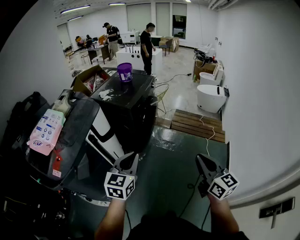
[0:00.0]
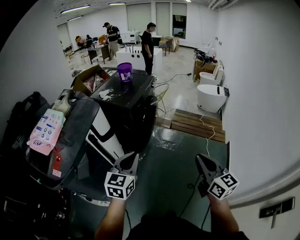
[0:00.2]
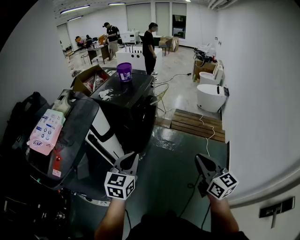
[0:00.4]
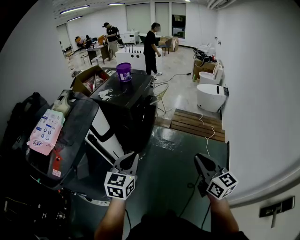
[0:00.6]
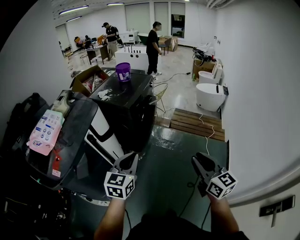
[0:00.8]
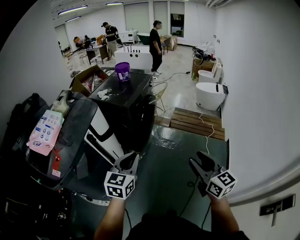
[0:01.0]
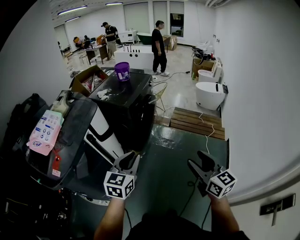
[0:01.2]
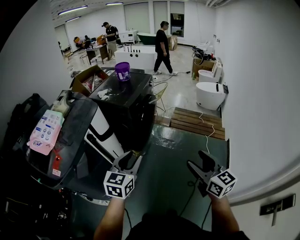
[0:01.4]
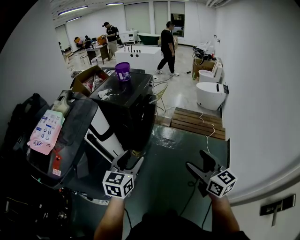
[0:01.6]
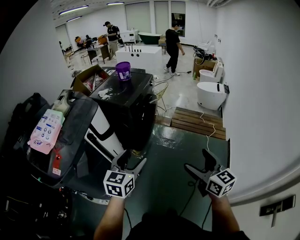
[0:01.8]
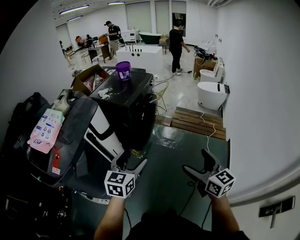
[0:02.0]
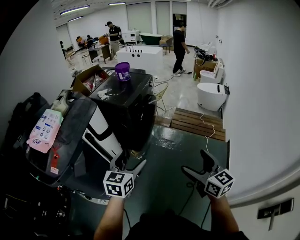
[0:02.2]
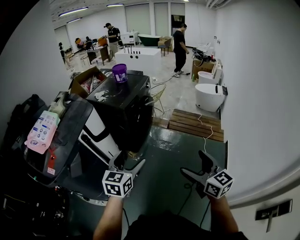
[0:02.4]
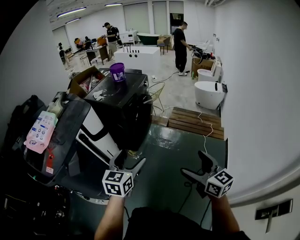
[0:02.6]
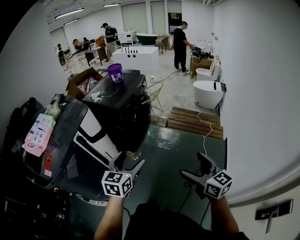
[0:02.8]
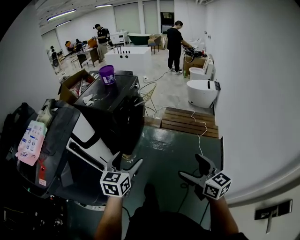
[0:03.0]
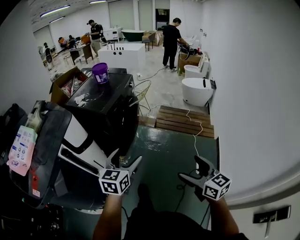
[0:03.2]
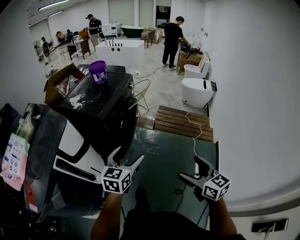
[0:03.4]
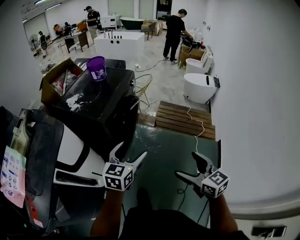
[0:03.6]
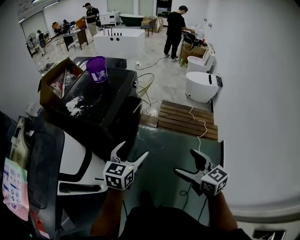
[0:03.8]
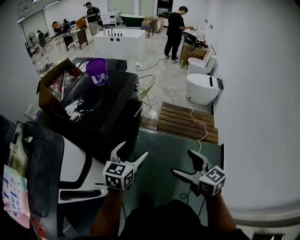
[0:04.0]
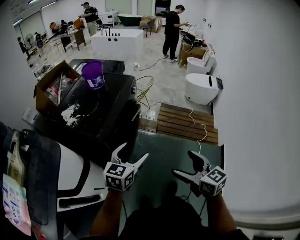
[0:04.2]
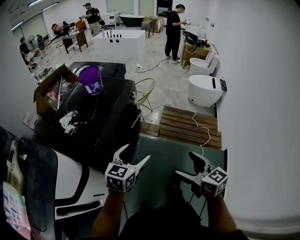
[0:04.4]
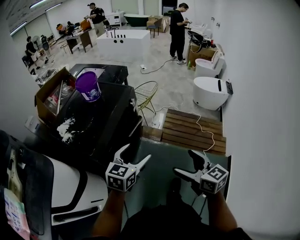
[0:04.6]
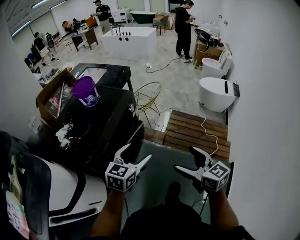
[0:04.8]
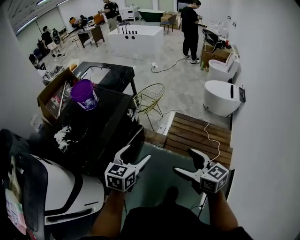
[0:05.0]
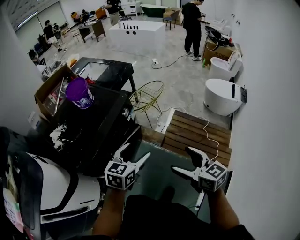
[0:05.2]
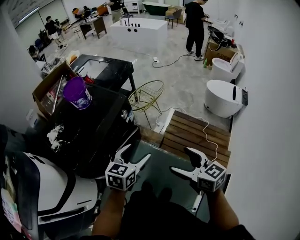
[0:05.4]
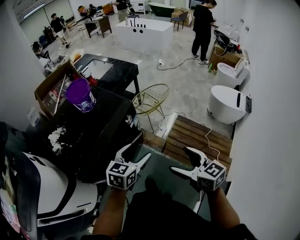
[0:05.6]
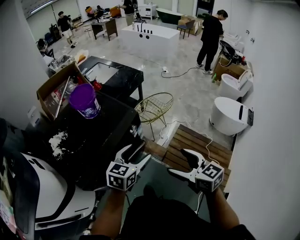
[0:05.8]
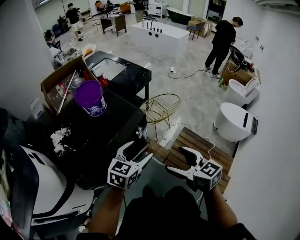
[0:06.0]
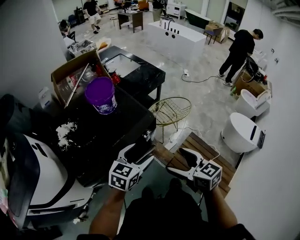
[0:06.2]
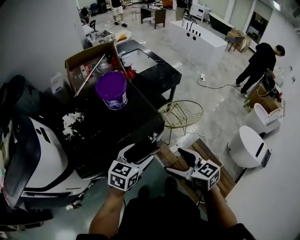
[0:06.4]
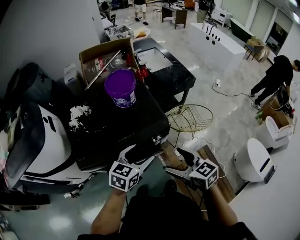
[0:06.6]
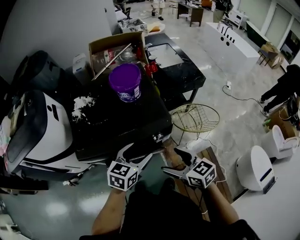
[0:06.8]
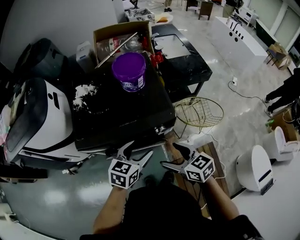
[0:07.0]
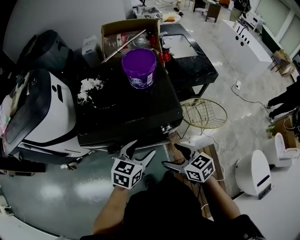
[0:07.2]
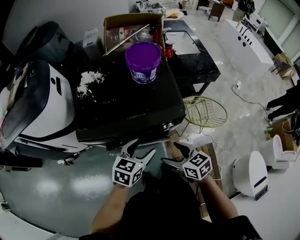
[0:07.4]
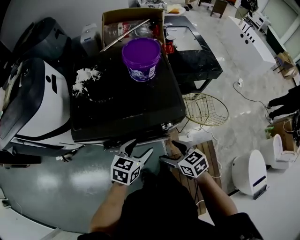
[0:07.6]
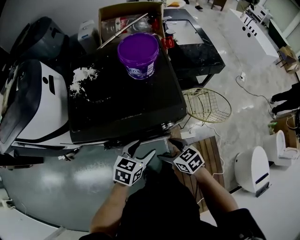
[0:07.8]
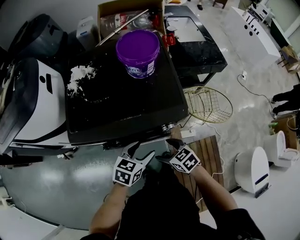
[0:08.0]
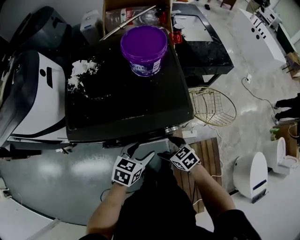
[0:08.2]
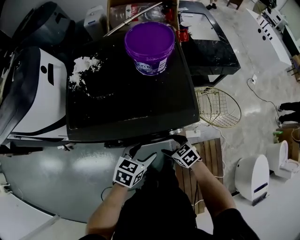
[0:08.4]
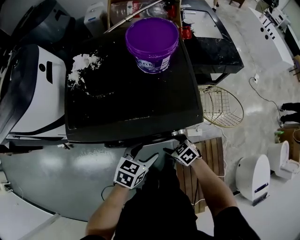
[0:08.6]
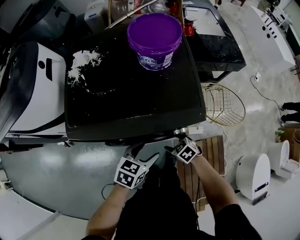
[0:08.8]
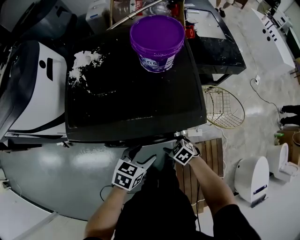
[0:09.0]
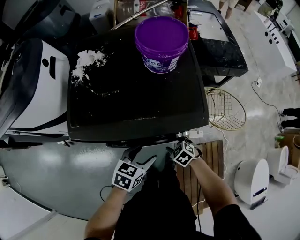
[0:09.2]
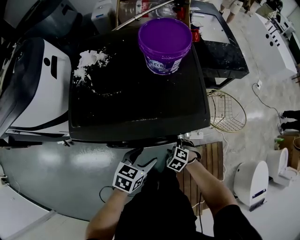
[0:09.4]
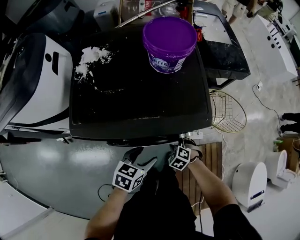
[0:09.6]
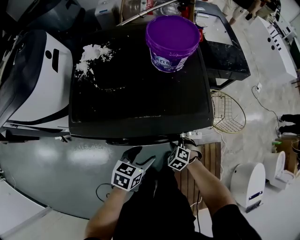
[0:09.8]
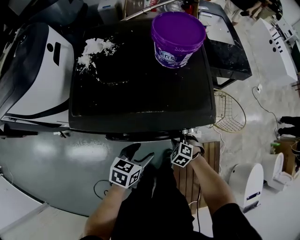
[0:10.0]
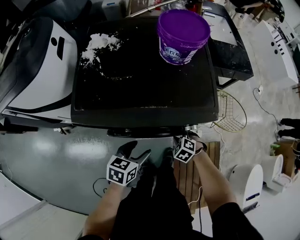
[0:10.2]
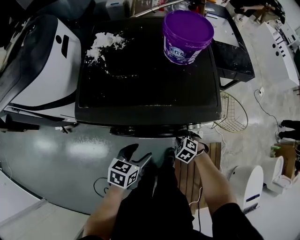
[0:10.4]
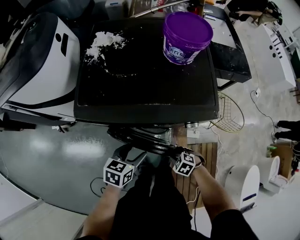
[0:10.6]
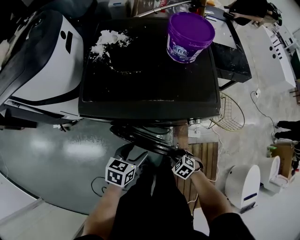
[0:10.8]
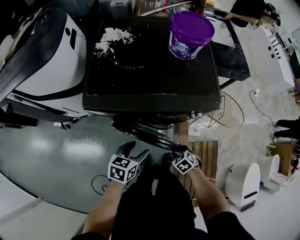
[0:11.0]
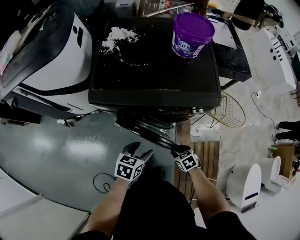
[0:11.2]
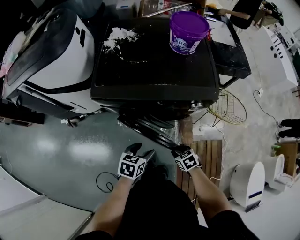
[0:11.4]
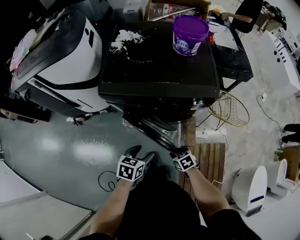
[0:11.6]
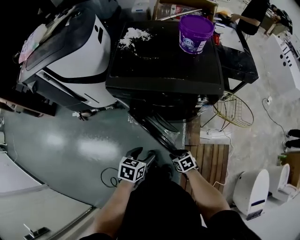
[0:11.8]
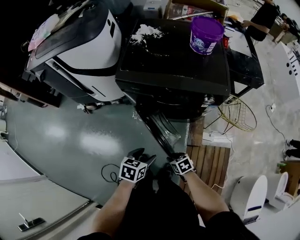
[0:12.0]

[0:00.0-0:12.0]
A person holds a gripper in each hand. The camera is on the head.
0:00.0 to 0:01.6: The right gripper opens. Meanwhile the left gripper opens its fingers.
0:01.6 to 0:03.0: The grippers both shift to the right by about 5 cm. The left gripper opens.
0:03.0 to 0:04.4: Both grippers travel together forward, about 40 cm.
0:04.4 to 0:06.0: Both grippers move forward, about 35 cm. The right gripper changes its angle by approximately 30 degrees.
0:06.0 to 0:07.6: The left gripper travels downward by roughly 10 cm, and turns by some 40 degrees. The right gripper heads downward, covering approximately 20 cm, and rotates roughly 50 degrees.
0:07.6 to 0:09.0: The left gripper travels downward by some 10 cm; the right gripper travels downward by some 20 cm, and changes its angle by roughly 30 degrees.
0:09.0 to 0:10.4: The right gripper swivels some 30 degrees, and closes; the left gripper goes about 5 cm to the left.
0:10.4 to 0:12.0: The right gripper shifts by some 25 cm, and swivels roughly 40 degrees, while the left gripper moves about 20 cm.

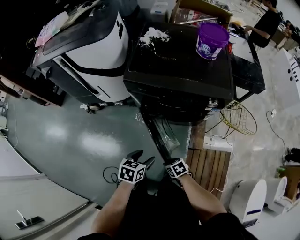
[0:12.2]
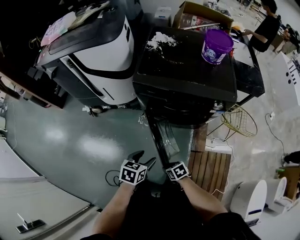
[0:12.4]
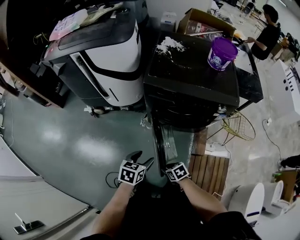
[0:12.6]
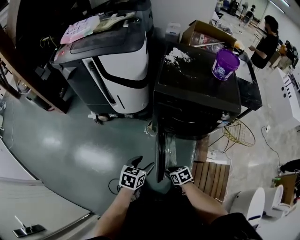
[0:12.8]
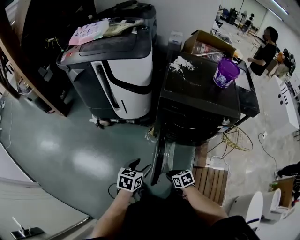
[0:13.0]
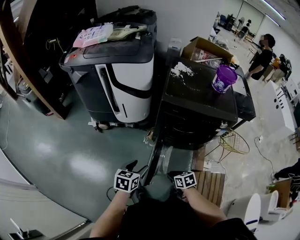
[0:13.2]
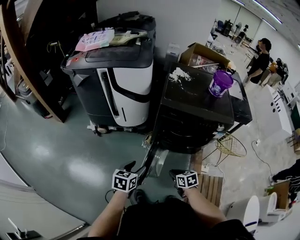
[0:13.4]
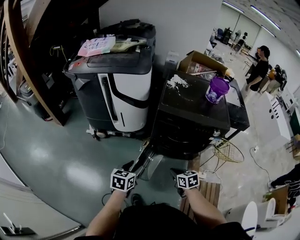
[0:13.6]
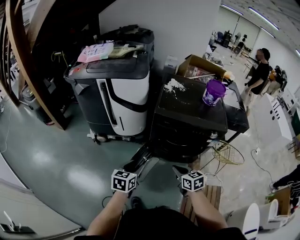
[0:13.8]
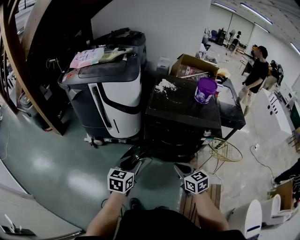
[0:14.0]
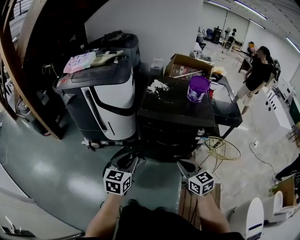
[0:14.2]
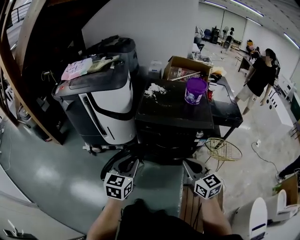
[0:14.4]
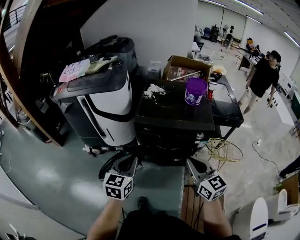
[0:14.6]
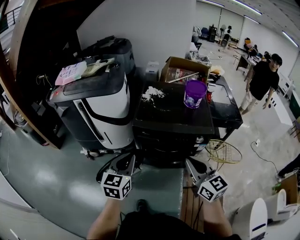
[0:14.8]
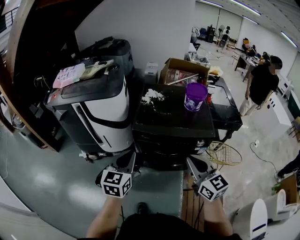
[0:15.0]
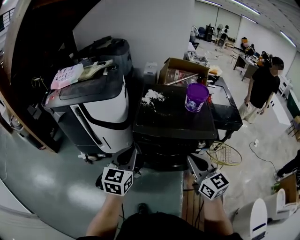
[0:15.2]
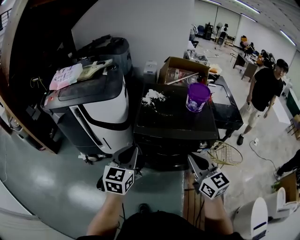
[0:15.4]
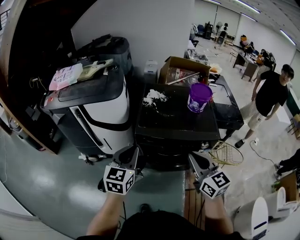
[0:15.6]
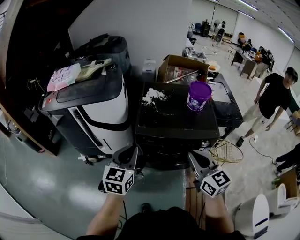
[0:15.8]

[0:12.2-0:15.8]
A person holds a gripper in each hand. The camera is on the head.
0:12.2 to 0:14.0: The left gripper moves upward and to the left, some 25 cm, and rotates some 30 degrees. Meanwhile the right gripper travels upward by about 30 cm, and angles its fingers upward, by roughly 30 degrees.
0:14.0 to 0:15.8: The right gripper moves upward and forward, about 20 cm, and swivels about 30 degrees. Meanwhile the left gripper travels forward and upward by roughly 20 cm, and closes its fingers.

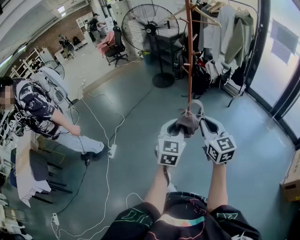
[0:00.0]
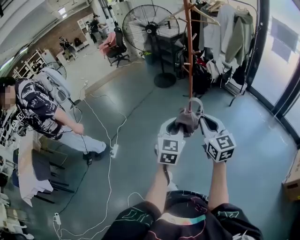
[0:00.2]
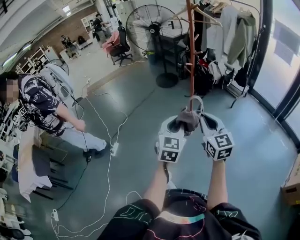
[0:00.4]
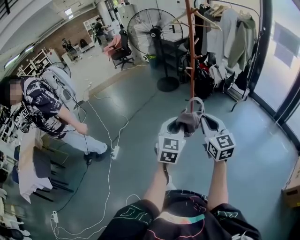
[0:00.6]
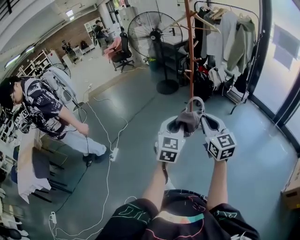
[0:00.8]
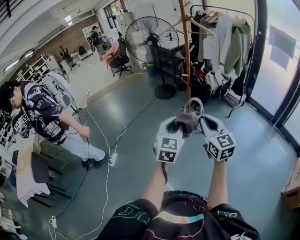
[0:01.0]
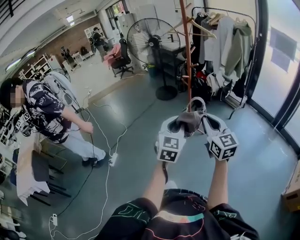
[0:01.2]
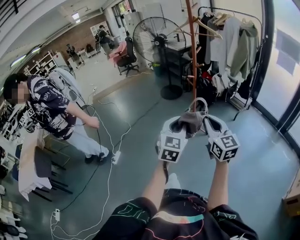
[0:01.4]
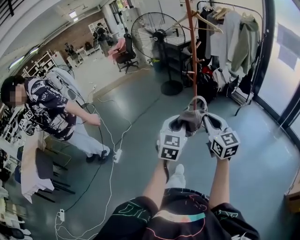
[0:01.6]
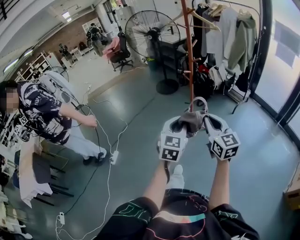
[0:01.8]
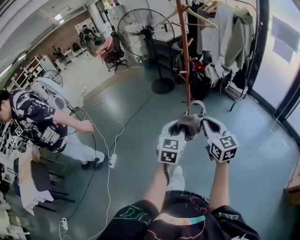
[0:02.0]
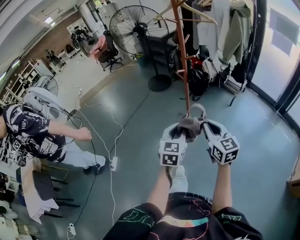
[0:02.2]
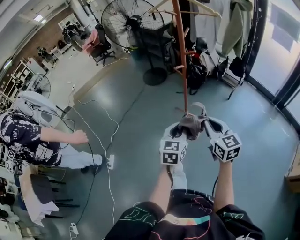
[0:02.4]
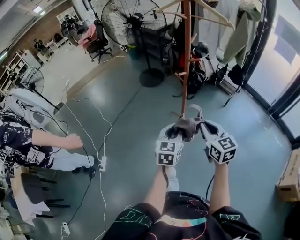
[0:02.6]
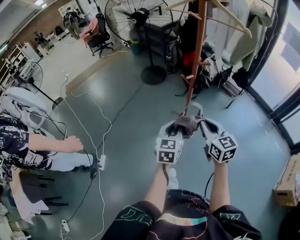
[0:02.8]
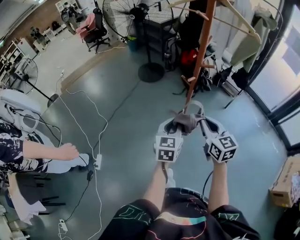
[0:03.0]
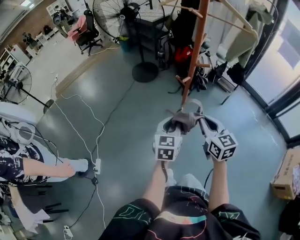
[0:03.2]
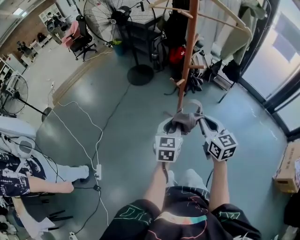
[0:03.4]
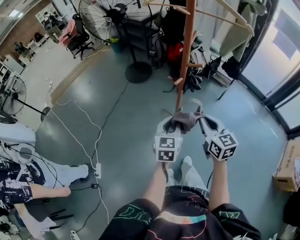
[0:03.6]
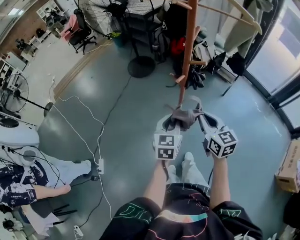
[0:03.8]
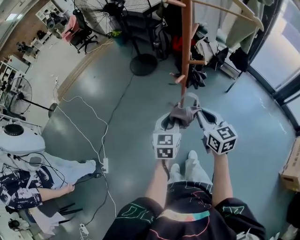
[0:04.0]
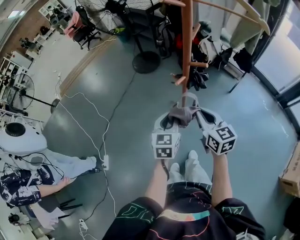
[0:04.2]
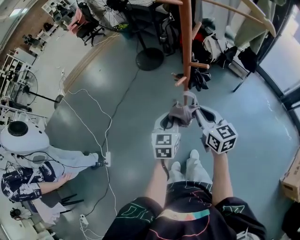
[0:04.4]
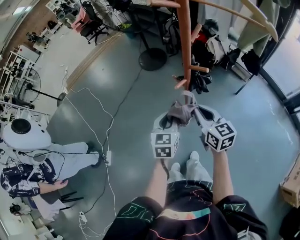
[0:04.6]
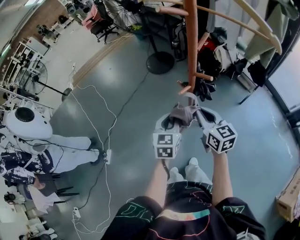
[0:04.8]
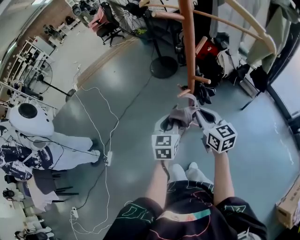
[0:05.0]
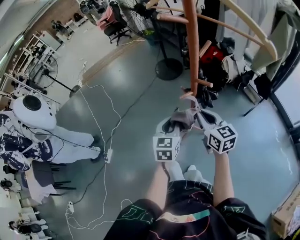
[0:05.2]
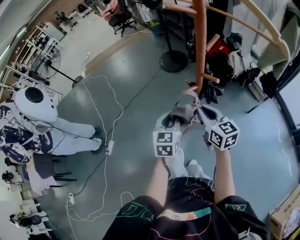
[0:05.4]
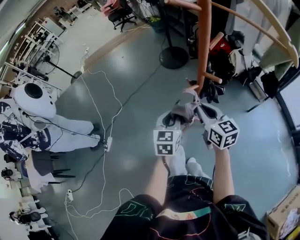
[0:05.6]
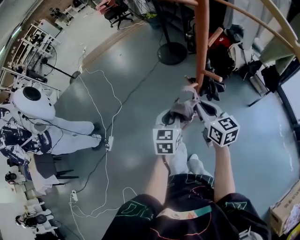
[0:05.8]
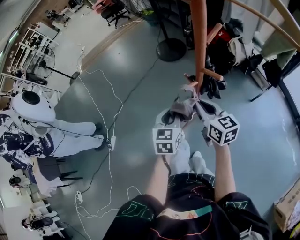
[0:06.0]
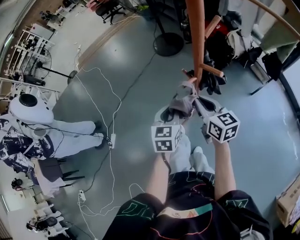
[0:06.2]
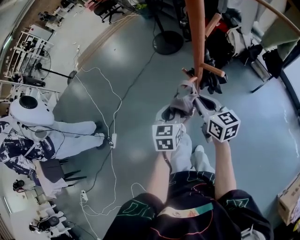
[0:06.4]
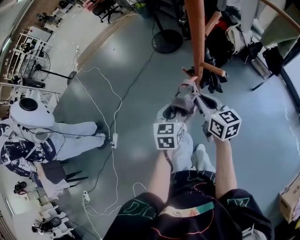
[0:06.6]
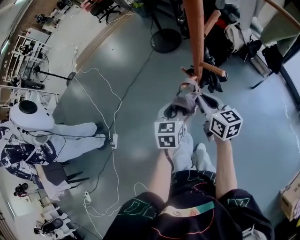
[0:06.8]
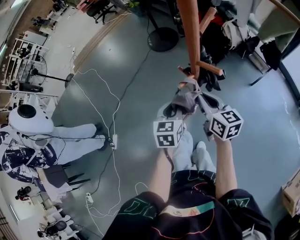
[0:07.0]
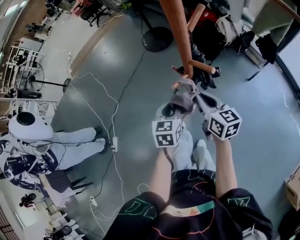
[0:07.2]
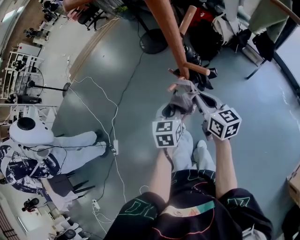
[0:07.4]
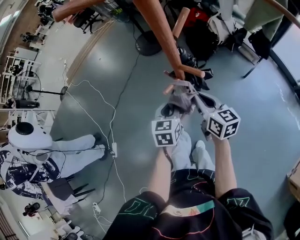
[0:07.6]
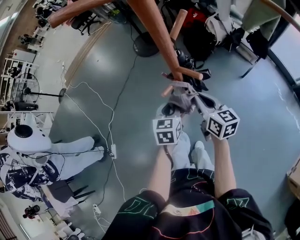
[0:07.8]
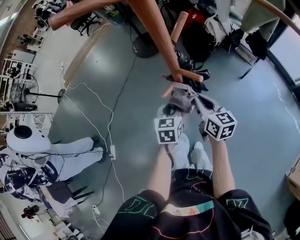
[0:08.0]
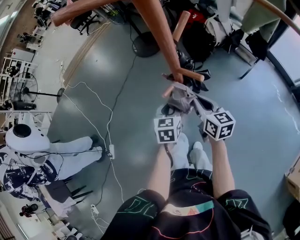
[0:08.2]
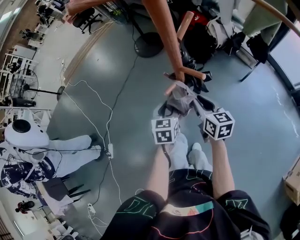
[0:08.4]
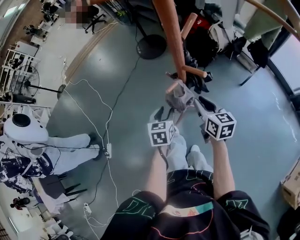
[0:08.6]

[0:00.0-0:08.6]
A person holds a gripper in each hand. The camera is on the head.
0:00.0 to 0:01.4: The right gripper moves about 5 cm, while the left gripper moves roughly 5 cm.
0:01.4 to 0:02.8: The left gripper is displaced forward and downward by about 30 cm, and changes its angle by about 20 degrees, while the right gripper is displaced forward by about 25 cm.
0:02.8 to 0:04.4: Both grippers move forward, approximately 15 cm.
0:04.4 to 0:05.8: The right gripper moves forward, about 5 cm.
0:05.8 to 0:07.2: The two grippers go roughly 5 cm downward.
0:07.2 to 0:08.6: The left gripper opens; the right gripper opens.
